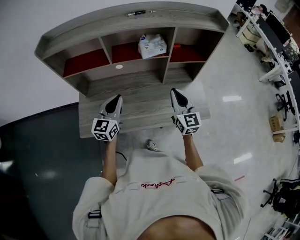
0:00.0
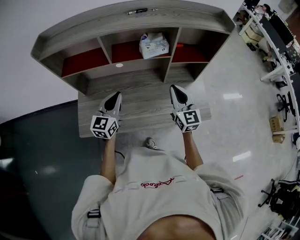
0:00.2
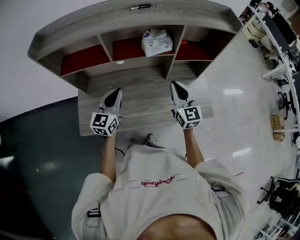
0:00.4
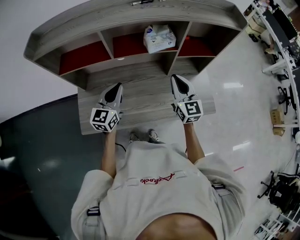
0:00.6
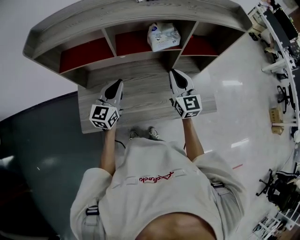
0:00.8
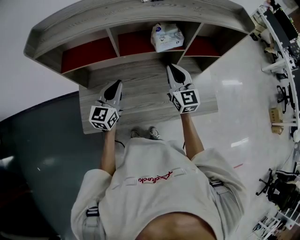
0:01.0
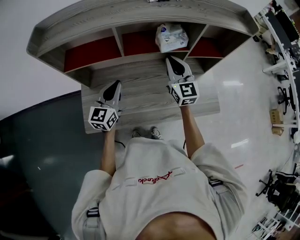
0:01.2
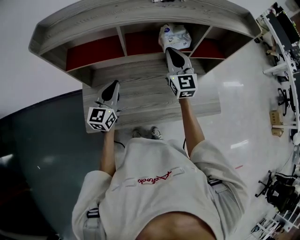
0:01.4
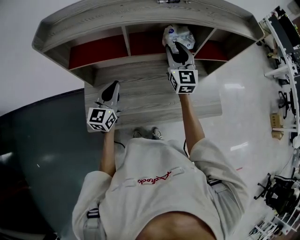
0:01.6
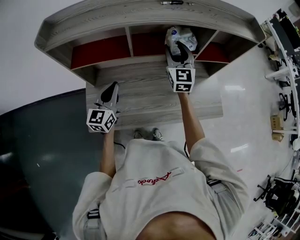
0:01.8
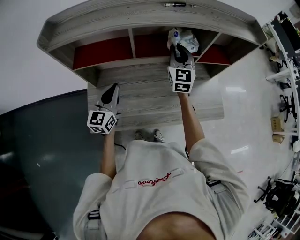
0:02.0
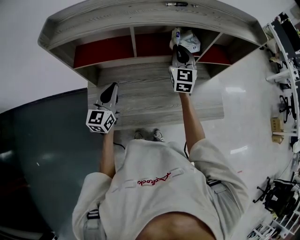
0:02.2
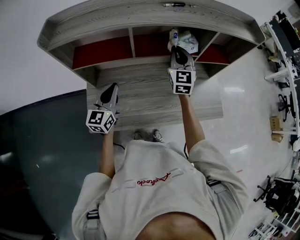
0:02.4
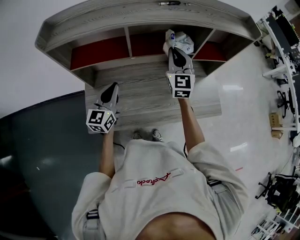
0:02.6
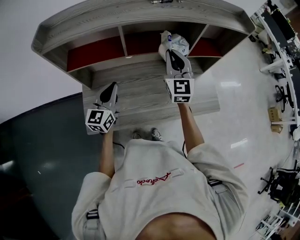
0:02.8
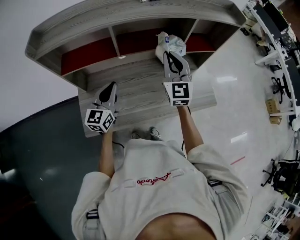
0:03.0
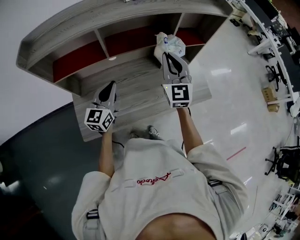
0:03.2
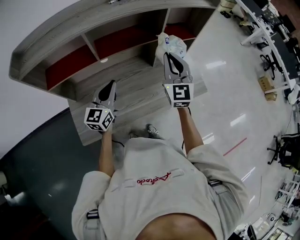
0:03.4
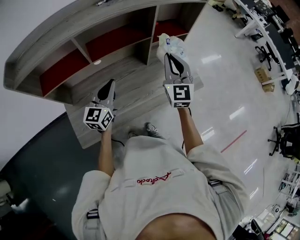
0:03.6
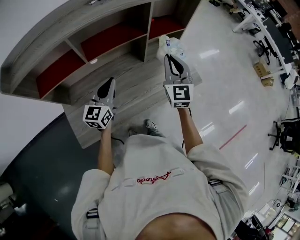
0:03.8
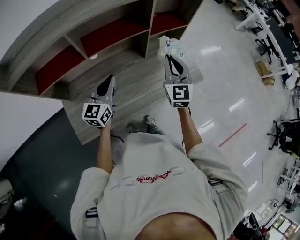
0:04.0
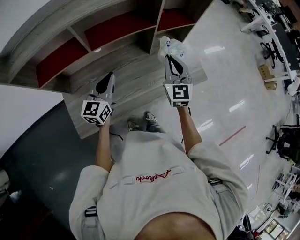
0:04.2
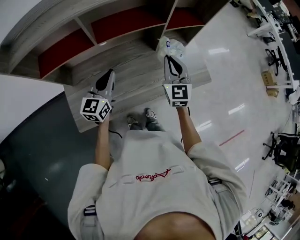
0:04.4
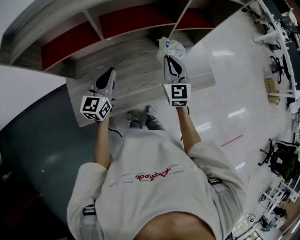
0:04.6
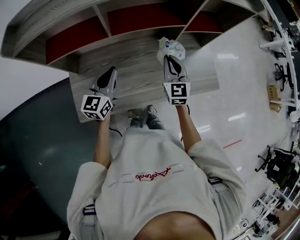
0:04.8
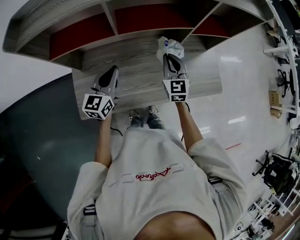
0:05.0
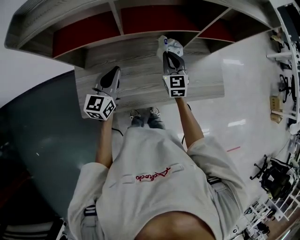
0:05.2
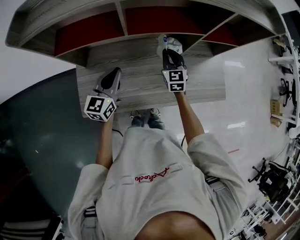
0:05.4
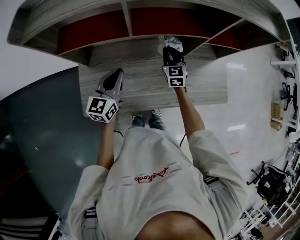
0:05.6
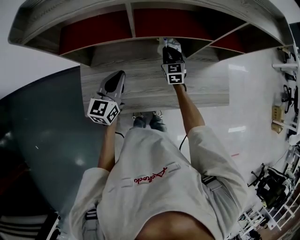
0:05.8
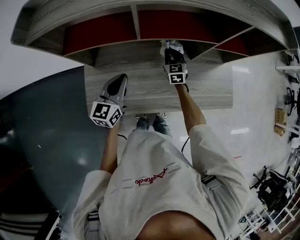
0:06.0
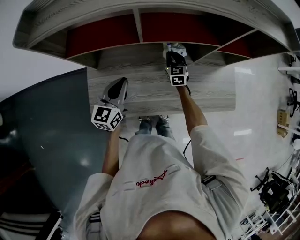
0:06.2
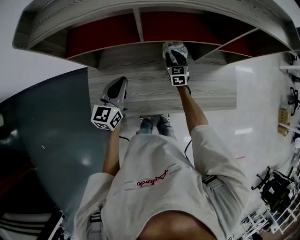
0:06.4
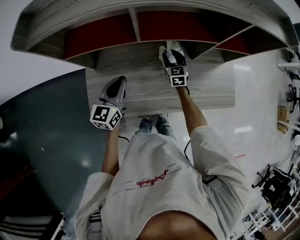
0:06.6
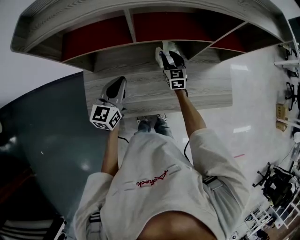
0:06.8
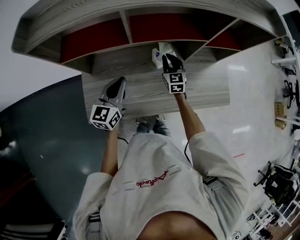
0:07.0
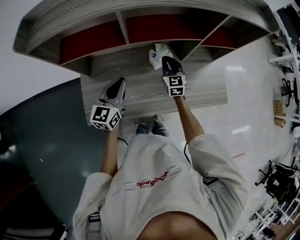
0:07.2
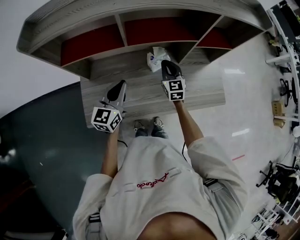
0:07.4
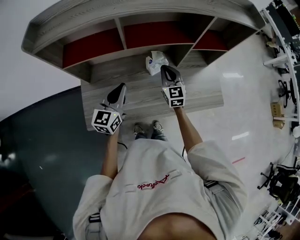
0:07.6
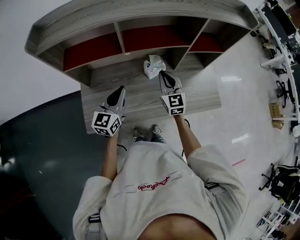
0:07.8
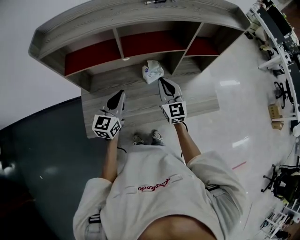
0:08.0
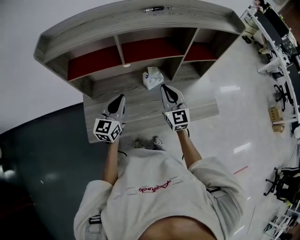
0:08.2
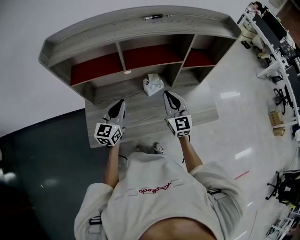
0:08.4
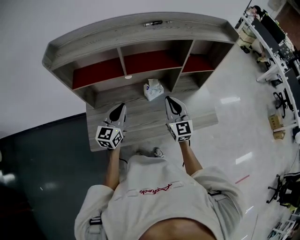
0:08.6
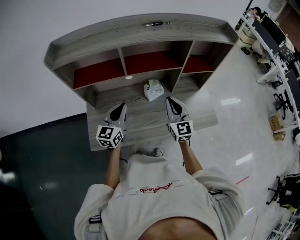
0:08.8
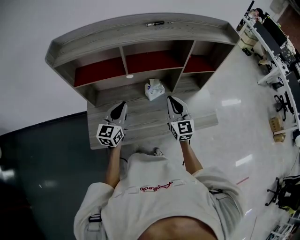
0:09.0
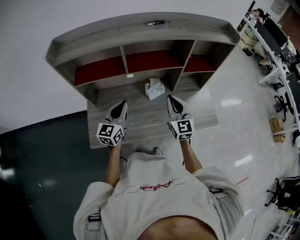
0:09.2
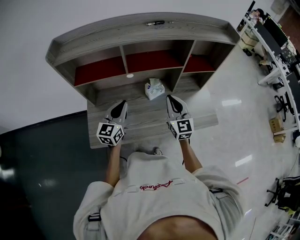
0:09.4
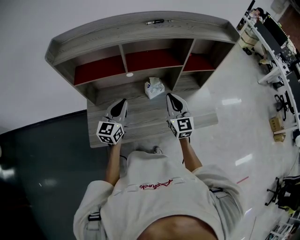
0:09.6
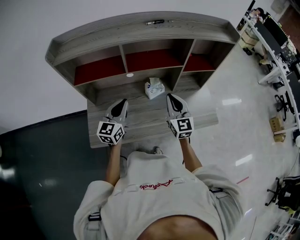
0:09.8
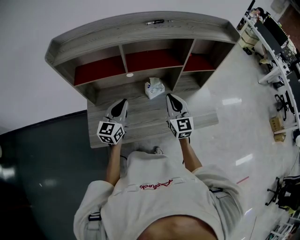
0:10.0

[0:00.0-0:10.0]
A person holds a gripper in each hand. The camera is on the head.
0:00.0 to 0:01.4: The left gripper moves to the left and forward, roughly 10 cm. Meanwhile the right gripper is displaced forward and to the left by approximately 20 cm.
0:01.4 to 0:02.8: The right gripper opens, then closes once more.
0:02.8 to 0:04.2: The right gripper moves to the right and downward, roughly 15 cm; the left gripper heads to the right, covering approximately 10 cm.
0:04.2 to 0:05.8: The right gripper moves downward, to the left and forward, approximately 30 cm, and changes its angle by roughly 30 degrees, while the left gripper is displaced to the left by approximately 10 cm.
0:05.8 to 0:07.2: The right gripper changes place by about 5 cm, and opens and closes again.
0:07.2 to 0:08.6: The right gripper moves upward and backward, about 20 cm.
0:08.6 to 0:10.0: The two grippers keep their place.

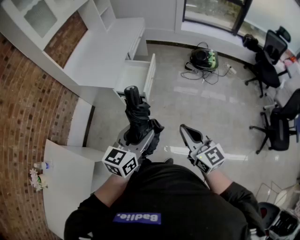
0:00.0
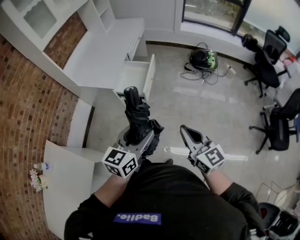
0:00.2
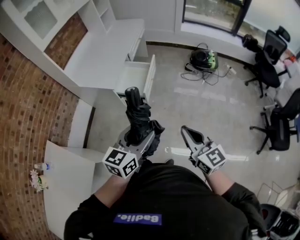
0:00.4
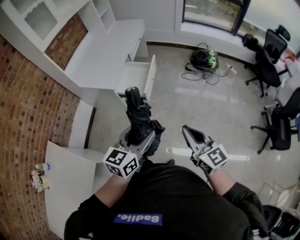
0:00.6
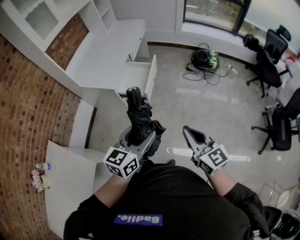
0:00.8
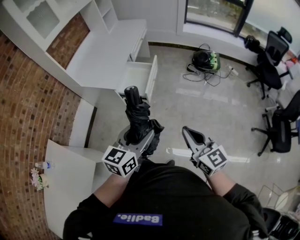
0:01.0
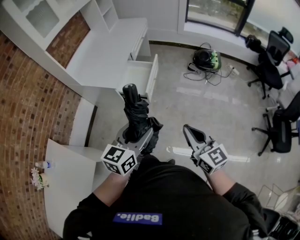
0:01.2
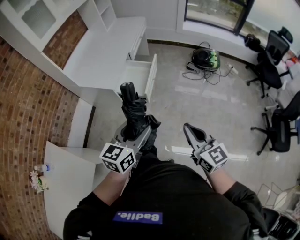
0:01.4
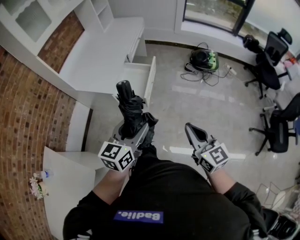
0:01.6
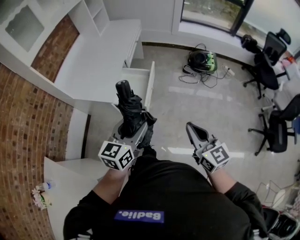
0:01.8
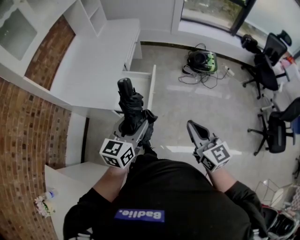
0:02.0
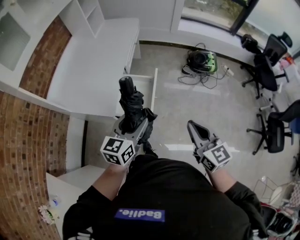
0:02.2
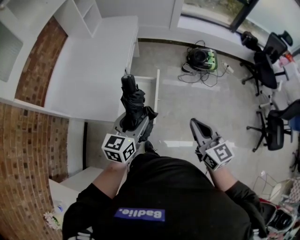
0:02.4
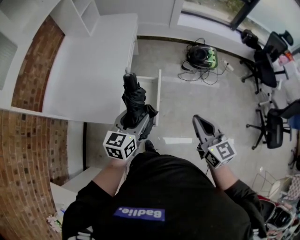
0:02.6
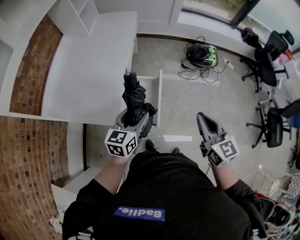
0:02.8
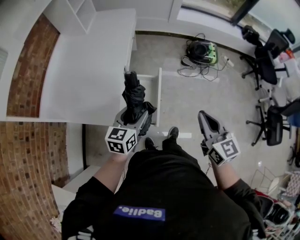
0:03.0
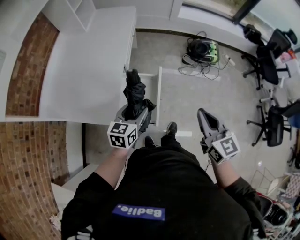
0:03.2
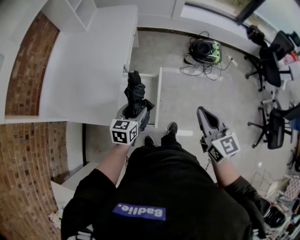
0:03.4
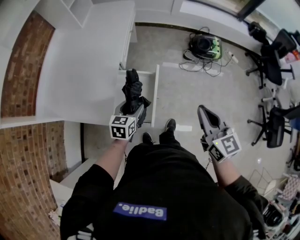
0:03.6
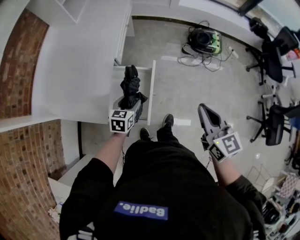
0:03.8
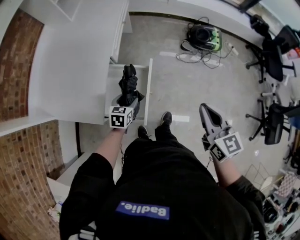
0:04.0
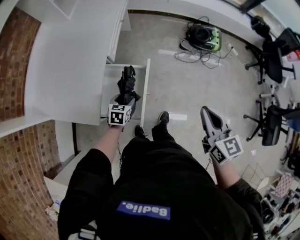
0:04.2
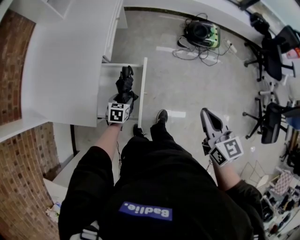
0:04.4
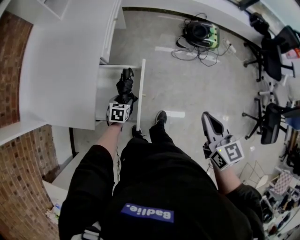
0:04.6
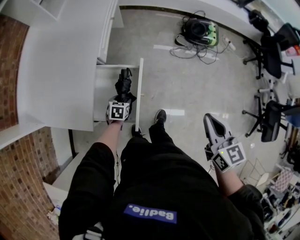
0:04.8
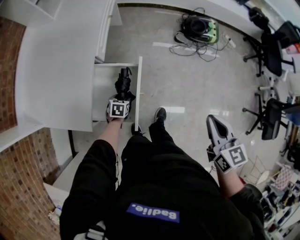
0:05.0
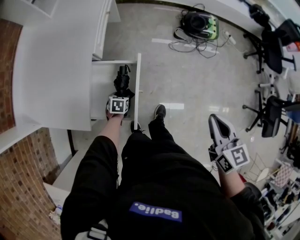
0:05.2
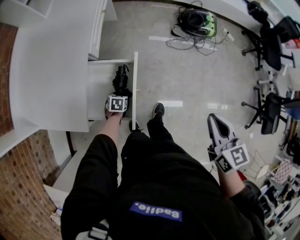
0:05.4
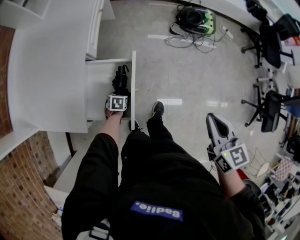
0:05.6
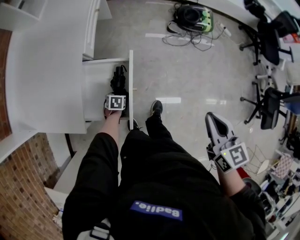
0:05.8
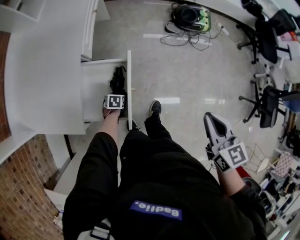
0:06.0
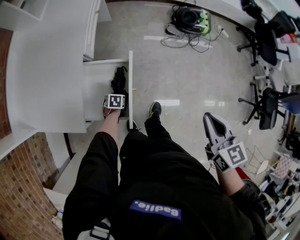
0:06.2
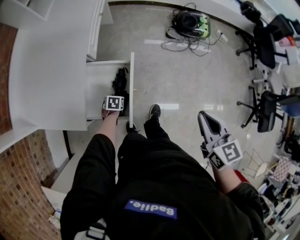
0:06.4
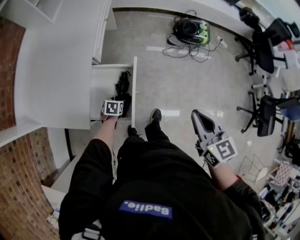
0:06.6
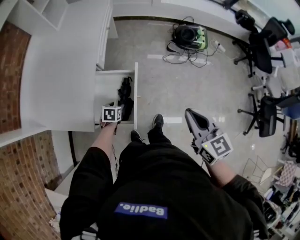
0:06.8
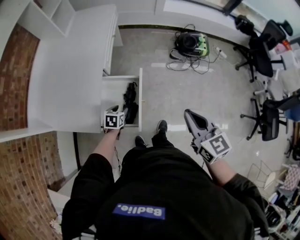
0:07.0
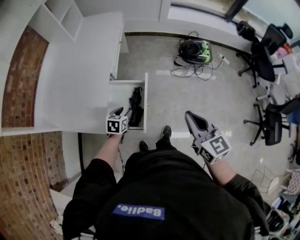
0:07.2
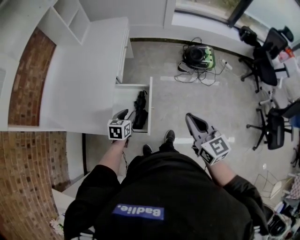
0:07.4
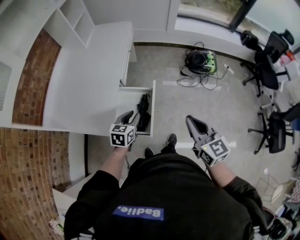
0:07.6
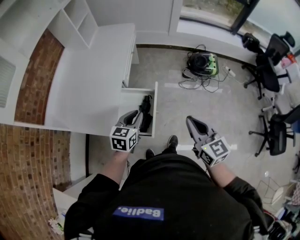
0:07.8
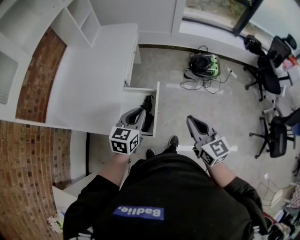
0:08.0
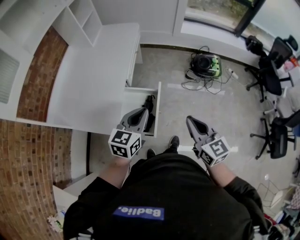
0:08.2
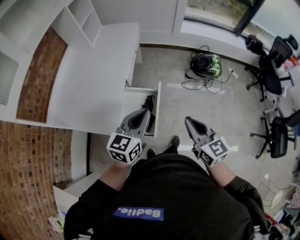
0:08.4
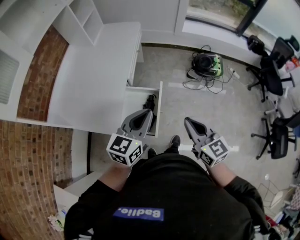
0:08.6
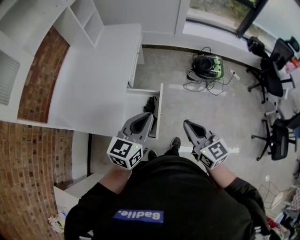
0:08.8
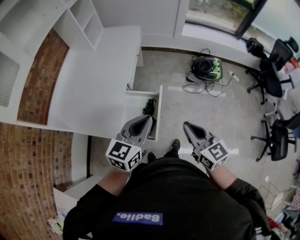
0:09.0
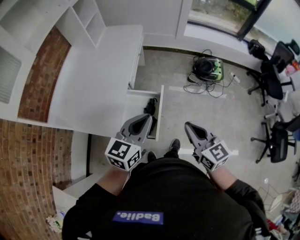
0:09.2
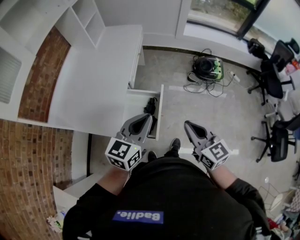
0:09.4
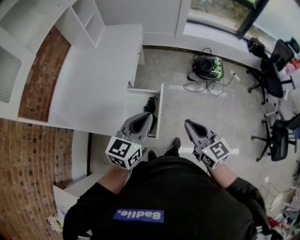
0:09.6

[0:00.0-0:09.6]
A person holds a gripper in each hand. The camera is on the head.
0:00.0 to 0:01.6: Both grippers move forward, approximately 5 cm.
0:01.6 to 0:03.2: The right gripper travels forward by roughly 25 cm, while the left gripper shifts approximately 35 cm forward and downward.
0:03.2 to 0:04.8: The right gripper travels to the right and downward by some 15 cm, while the left gripper shifts some 30 cm downward, and angles its fingers downward, by about 40 degrees.
0:04.8 to 0:06.4: The left gripper heads downward, covering about 5 cm.
0:06.4 to 0:08.0: The left gripper moves upward, some 40 cm, points its fingers roughly 50 degrees further upward, and closes its fingers. Meanwhile the right gripper travels to the left and upward by some 15 cm.
0:08.0 to 0:09.6: The left gripper moves upward, some 10 cm.

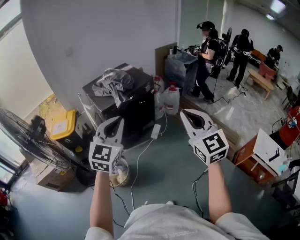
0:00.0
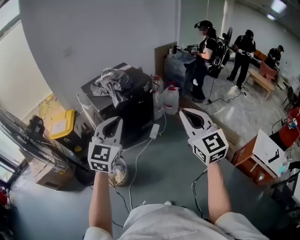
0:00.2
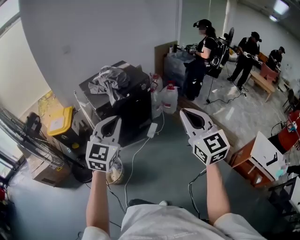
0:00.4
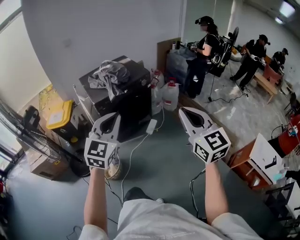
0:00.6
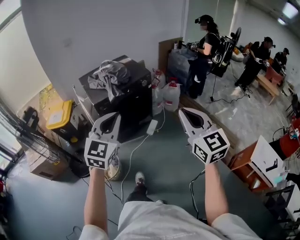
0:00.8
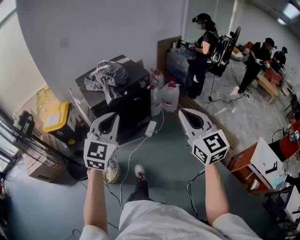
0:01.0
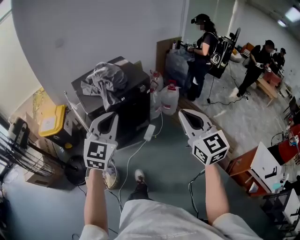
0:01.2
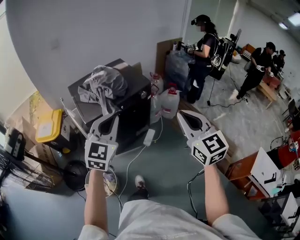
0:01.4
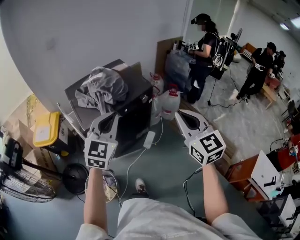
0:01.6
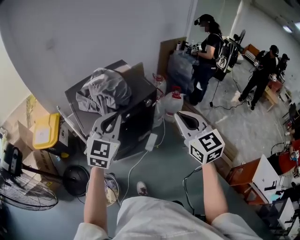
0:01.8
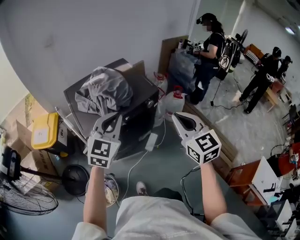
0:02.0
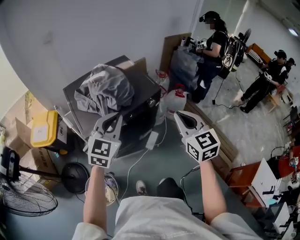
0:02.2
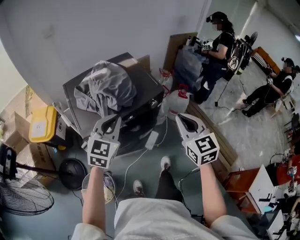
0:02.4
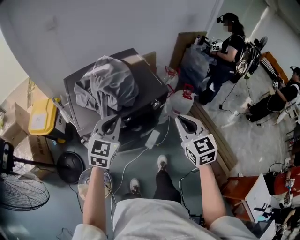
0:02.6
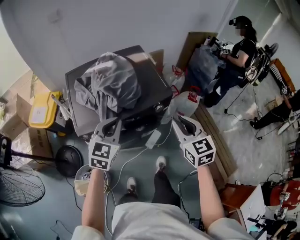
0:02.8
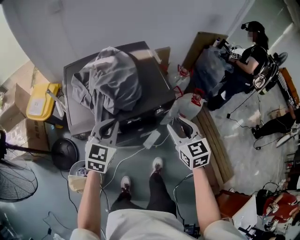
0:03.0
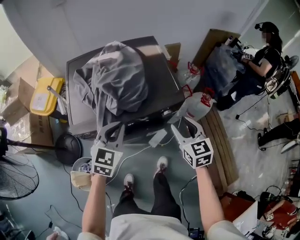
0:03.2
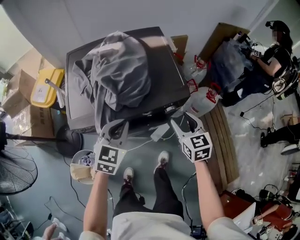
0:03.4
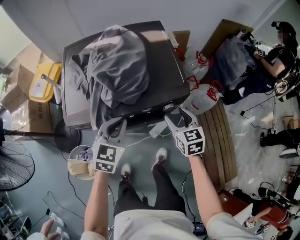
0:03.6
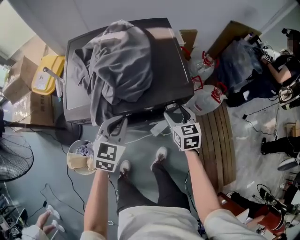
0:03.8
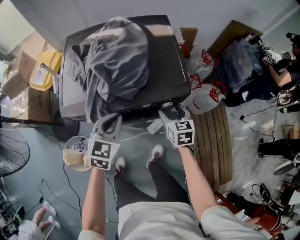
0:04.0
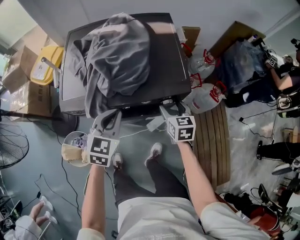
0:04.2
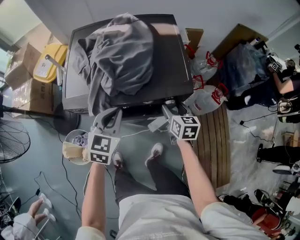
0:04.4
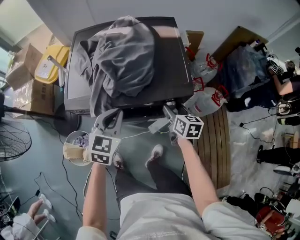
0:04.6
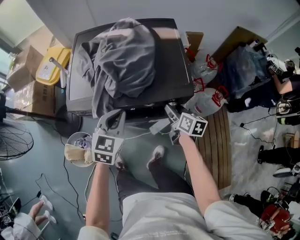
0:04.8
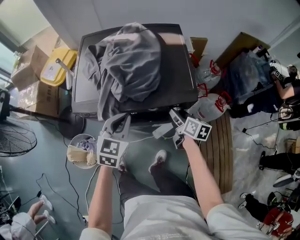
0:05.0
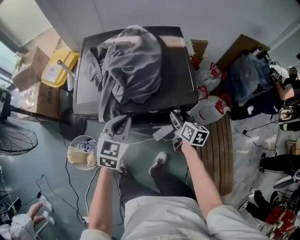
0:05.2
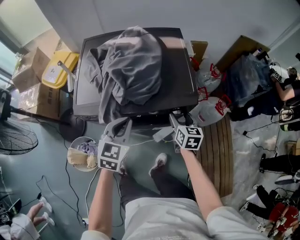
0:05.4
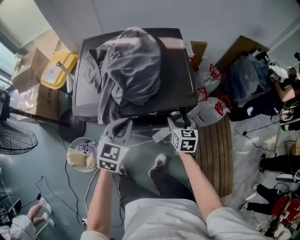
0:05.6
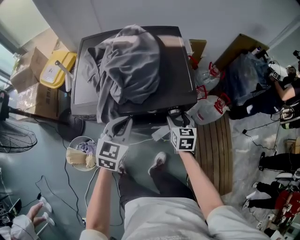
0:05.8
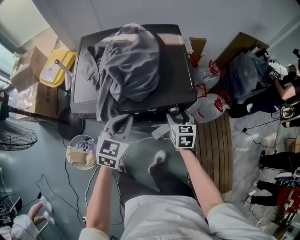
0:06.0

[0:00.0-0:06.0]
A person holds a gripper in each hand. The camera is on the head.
0:00.0 to 0:01.6: The grippers both shift forward by roughly 30 cm.
0:01.6 to 0:03.0: The two grippers go roughly 30 cm forward and downward. The right gripper rotates roughly 20 degrees, and opens its fingers; the left gripper changes its angle by about 20 degrees.
0:03.0 to 0:04.4: The right gripper travels downward and forward by approximately 20 cm, rotates roughly 20 degrees, and opens. The left gripper is displaced downward by approximately 10 cm.
